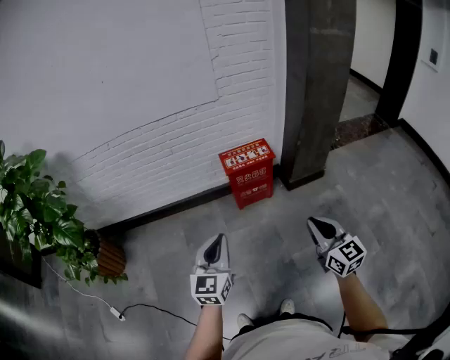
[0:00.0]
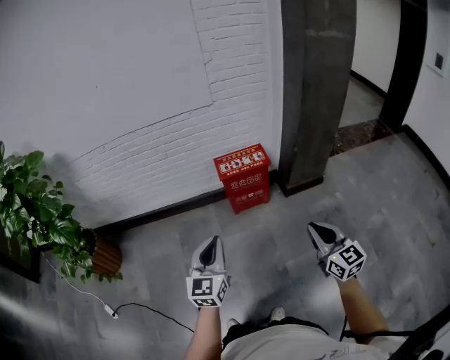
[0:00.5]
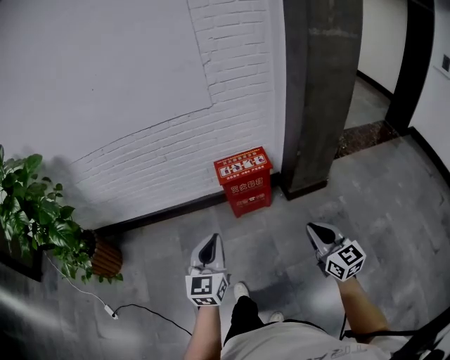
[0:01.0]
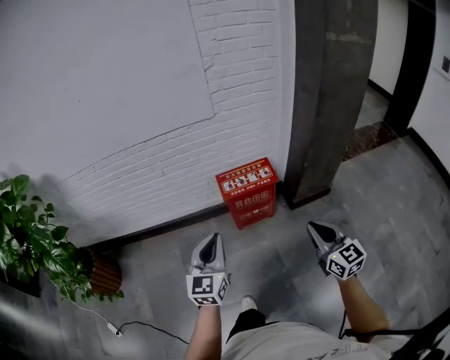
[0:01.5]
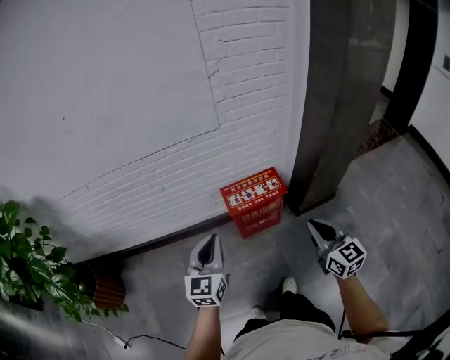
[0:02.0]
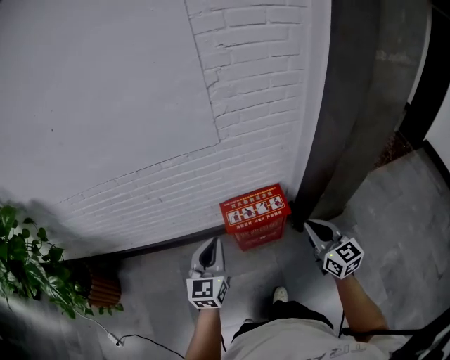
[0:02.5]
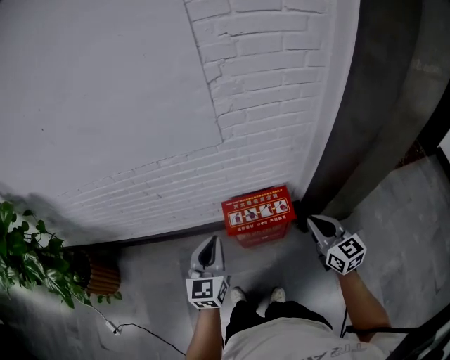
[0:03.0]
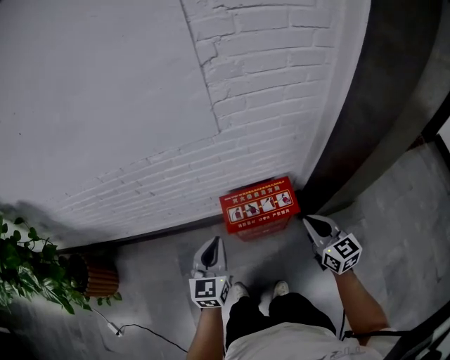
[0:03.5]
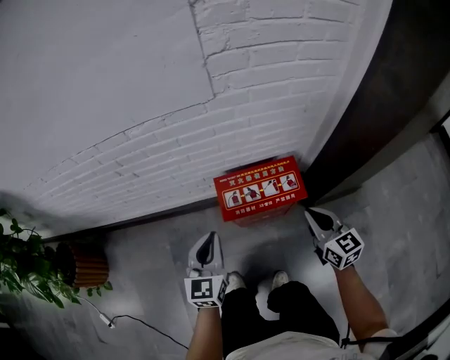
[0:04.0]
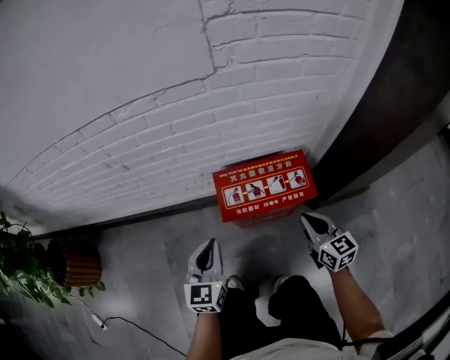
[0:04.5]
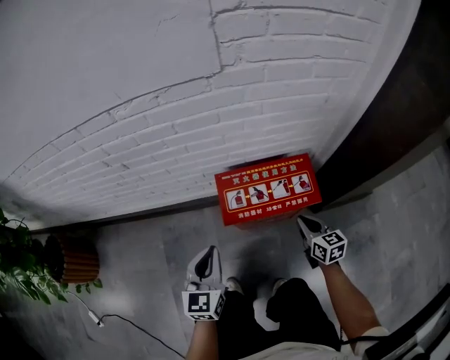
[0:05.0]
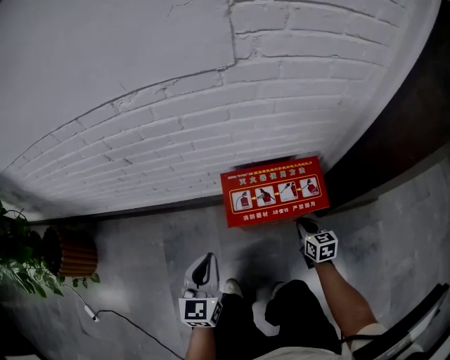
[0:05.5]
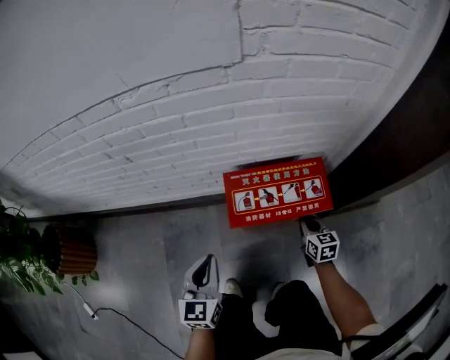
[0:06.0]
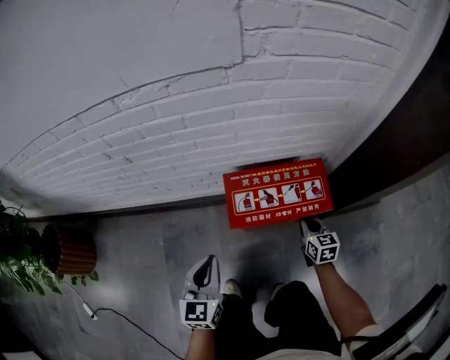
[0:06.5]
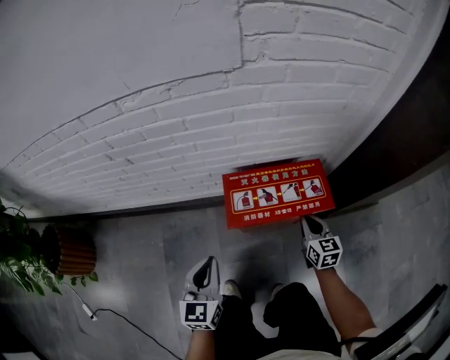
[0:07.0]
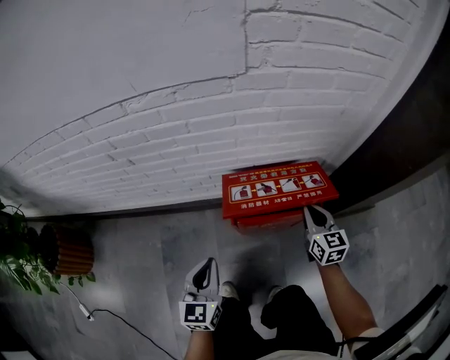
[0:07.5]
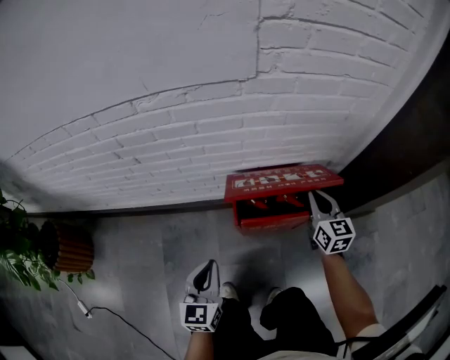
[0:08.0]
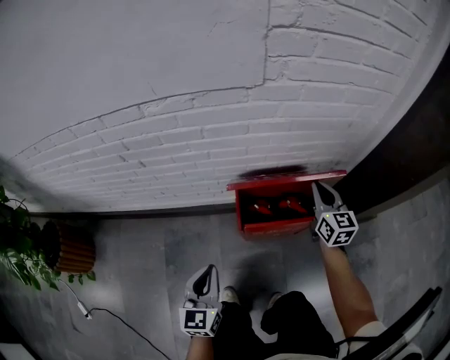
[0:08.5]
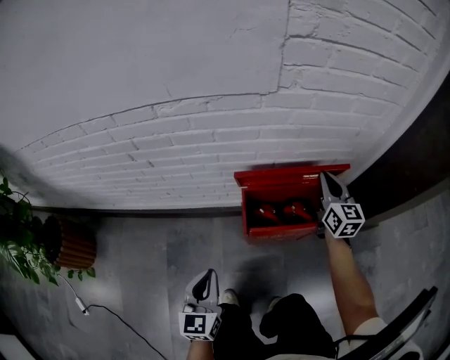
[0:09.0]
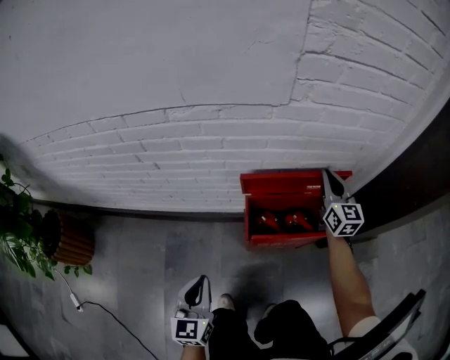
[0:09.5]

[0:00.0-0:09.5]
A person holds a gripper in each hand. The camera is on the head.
0:00.0 to 0:02.0: The grippers both shift forward by some 30 cm.
0:02.0 to 0:04.0: The right gripper goes roughly 35 cm forward and downward; the left gripper goes roughly 30 cm downward and forward.
0:04.0 to 0:05.5: The right gripper is displaced downward by roughly 30 cm, and changes its angle by some 20 degrees, while the left gripper heads downward, covering about 15 cm.
0:05.5 to 0:07.5: The right gripper shifts approximately 15 cm upward.
0:07.5 to 0:09.5: The left gripper moves to the left, approximately 5 cm. The right gripper shifts approximately 20 cm forward and upward.

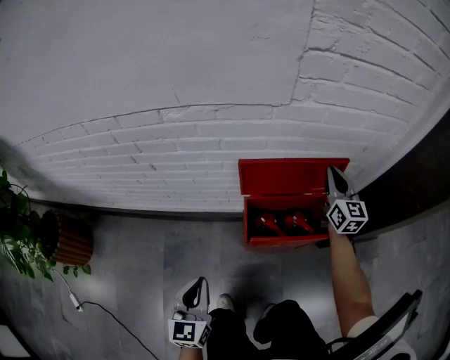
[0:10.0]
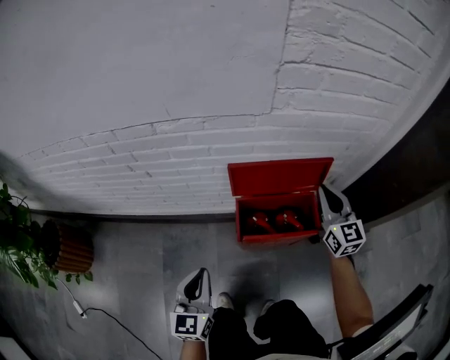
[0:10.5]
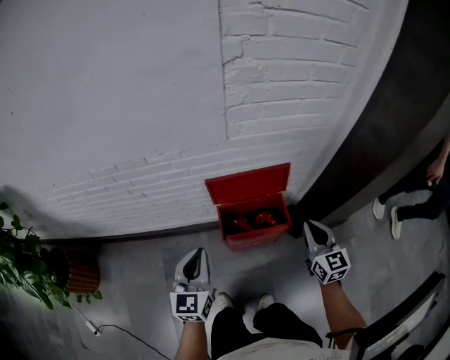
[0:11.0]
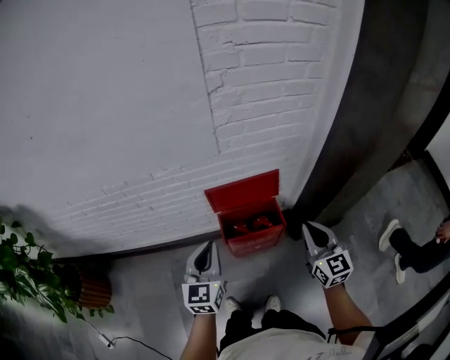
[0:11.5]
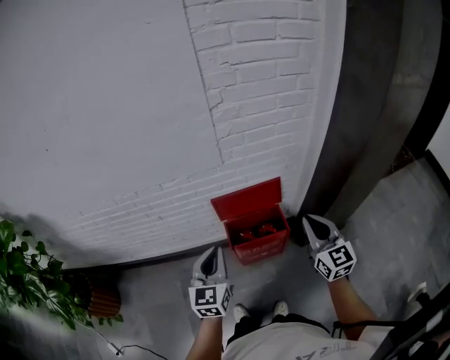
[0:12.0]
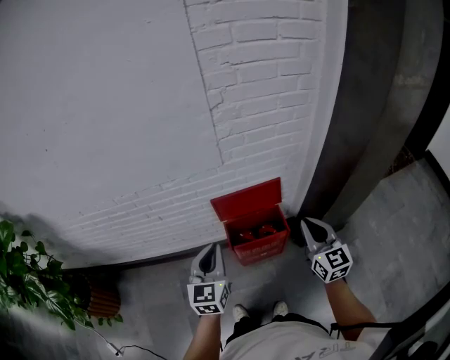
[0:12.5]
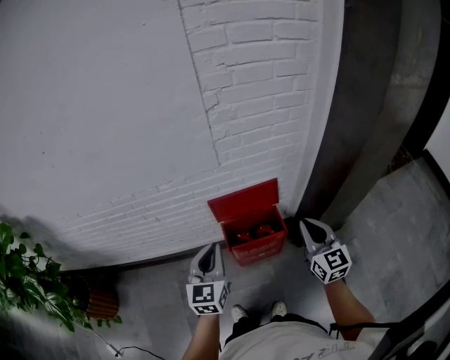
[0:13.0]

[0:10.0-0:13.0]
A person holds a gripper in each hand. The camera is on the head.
0:10.0 to 0:11.5: The left gripper moves upward, about 25 cm, while the right gripper is displaced backward and upward by roughly 35 cm.
0:11.5 to 0:13.0: The grippers stay close to where they were, moving slightly.

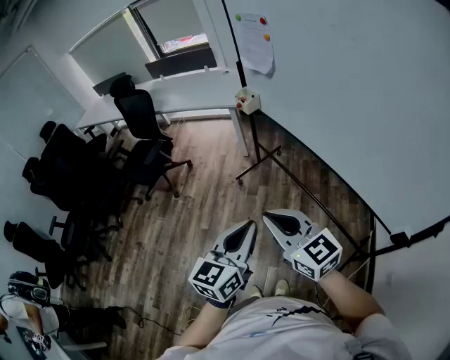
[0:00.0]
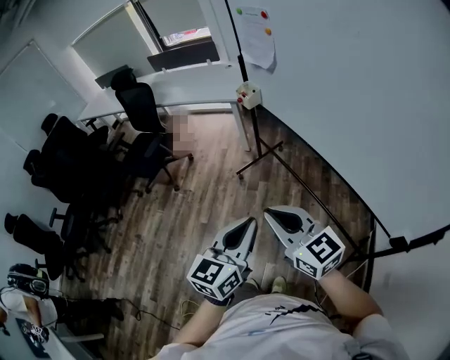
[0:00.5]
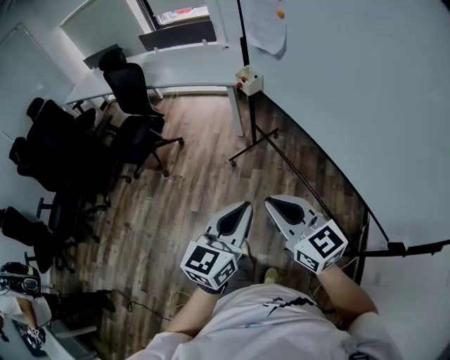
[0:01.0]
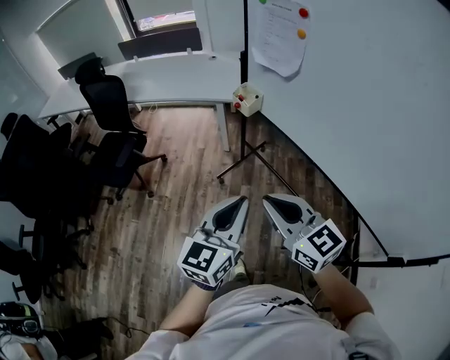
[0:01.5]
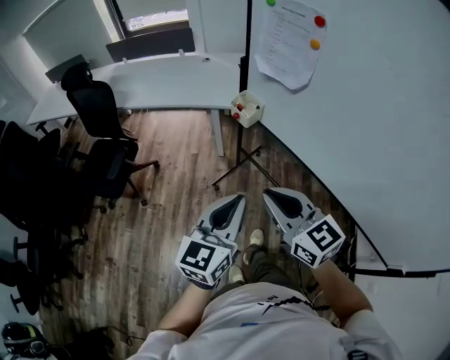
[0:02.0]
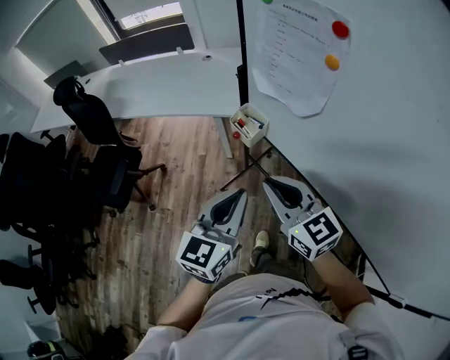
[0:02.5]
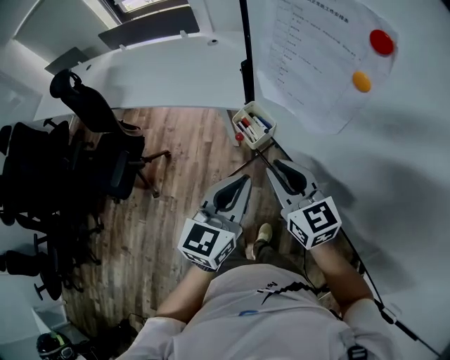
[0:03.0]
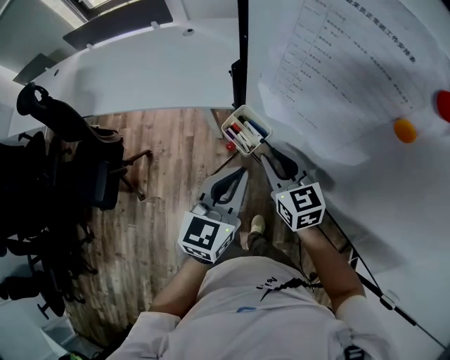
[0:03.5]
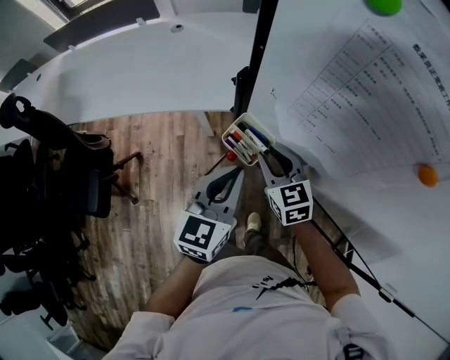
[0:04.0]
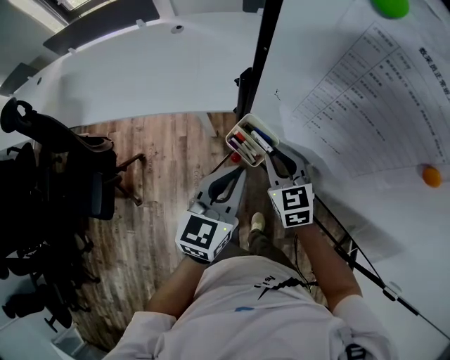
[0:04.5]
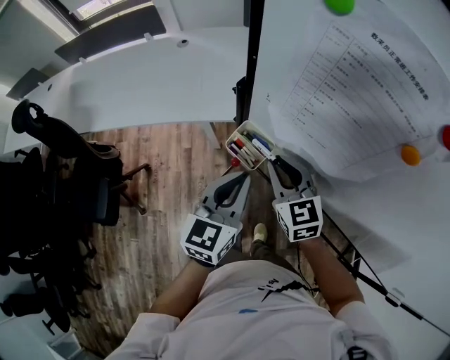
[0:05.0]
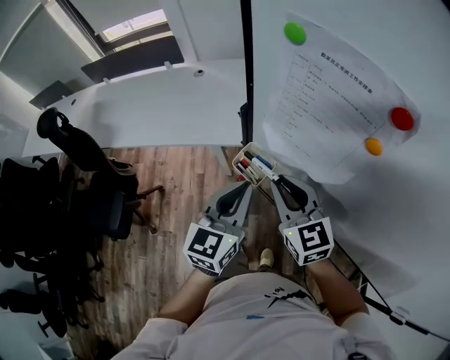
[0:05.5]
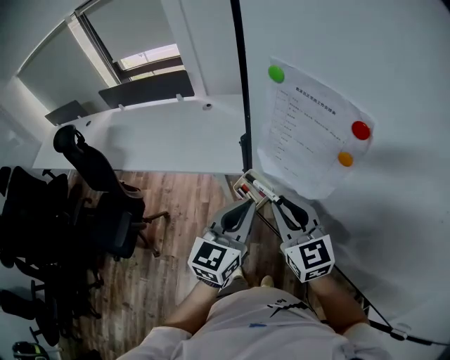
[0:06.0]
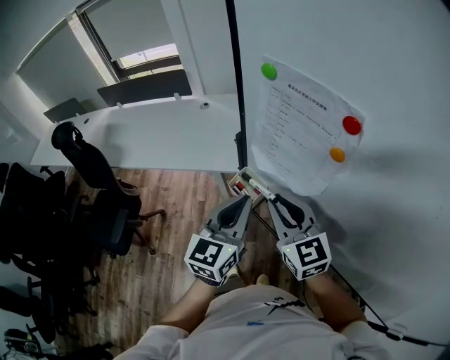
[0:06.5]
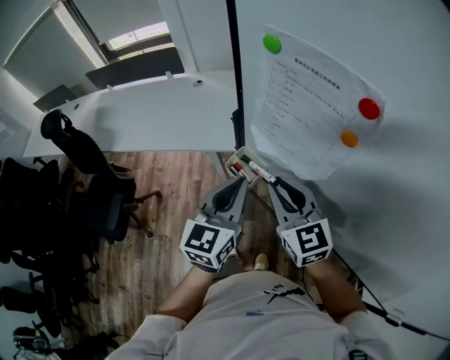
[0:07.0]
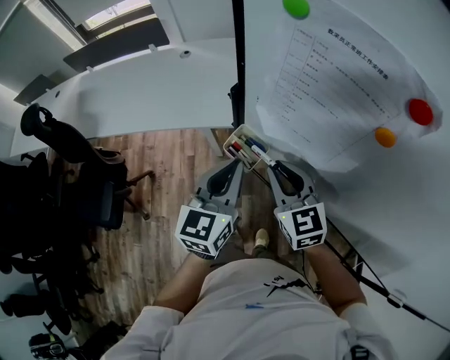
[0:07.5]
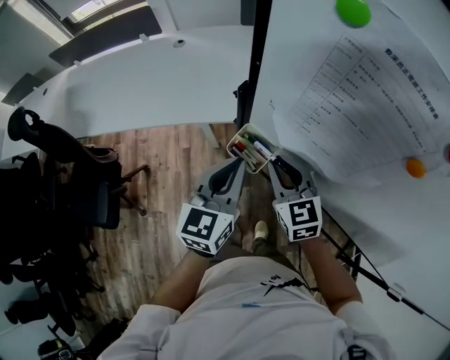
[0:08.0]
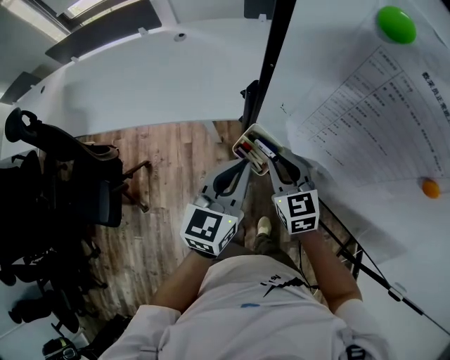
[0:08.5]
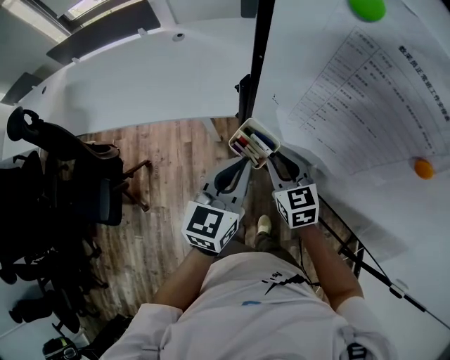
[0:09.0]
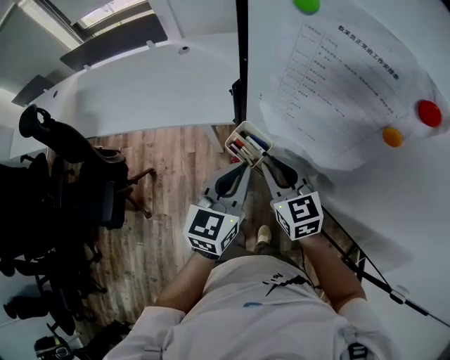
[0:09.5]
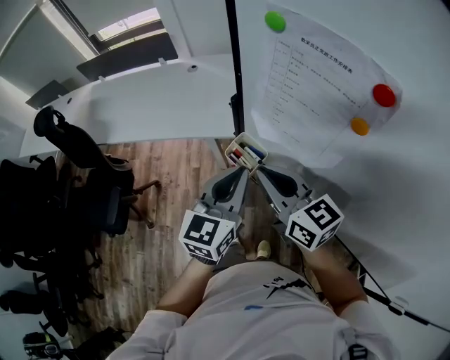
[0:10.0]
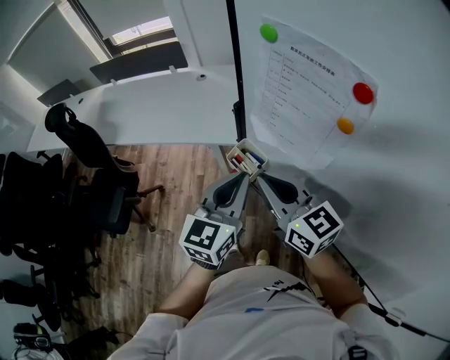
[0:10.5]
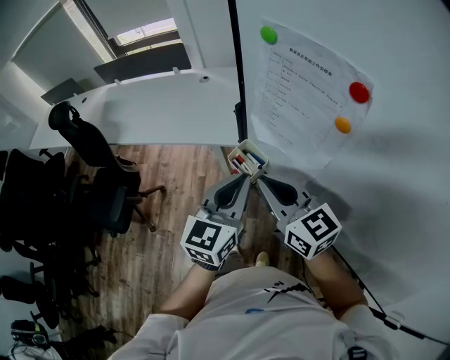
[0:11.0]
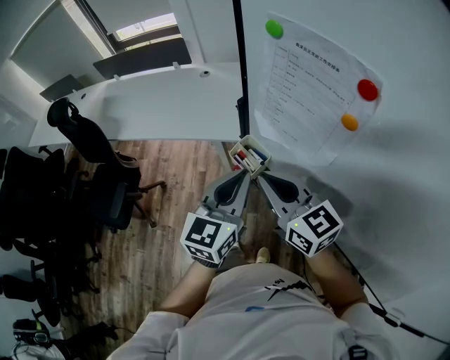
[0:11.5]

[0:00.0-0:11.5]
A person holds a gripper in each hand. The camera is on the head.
0:00.0 to 0:02.0: The two grippers go roughly 30 cm forward.
0:02.0 to 0:04.0: The two grippers travel together, forward, some 40 cm. The right gripper is displaced downward by about 20 cm, swivels about 30 degrees, and opens up.
0:04.0 to 0:06.0: The left gripper shifts about 10 cm upward, while the right gripper shifts approximately 20 cm upward, and swivels approximately 20 degrees.
0:06.0 to 0:07.5: The left gripper goes some 5 cm downward, while the right gripper shifts some 10 cm downward.
0:07.5 to 0:09.5: The right gripper moves approximately 10 cm downward and comes back.
0:09.5 to 0:11.5: The left gripper moves upward, approximately 10 cm. The right gripper heads upward and backward, covering roughly 15 cm, and rotates approximately 20 degrees.

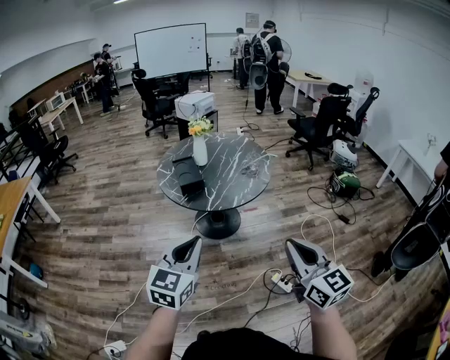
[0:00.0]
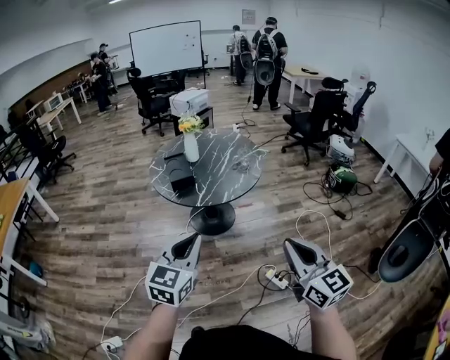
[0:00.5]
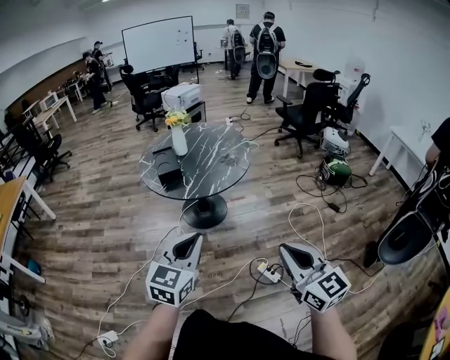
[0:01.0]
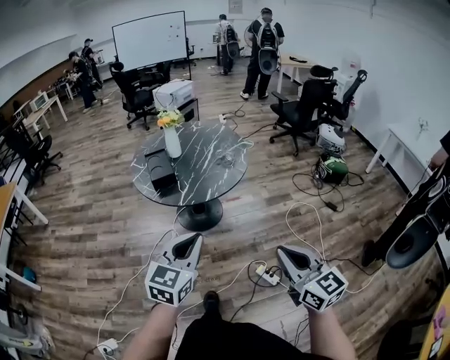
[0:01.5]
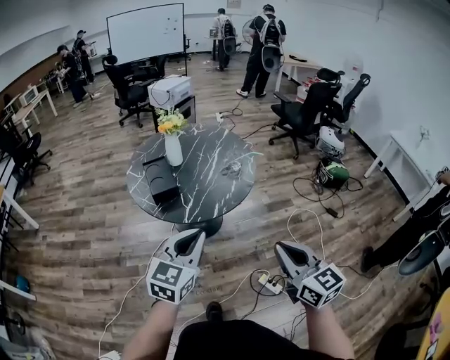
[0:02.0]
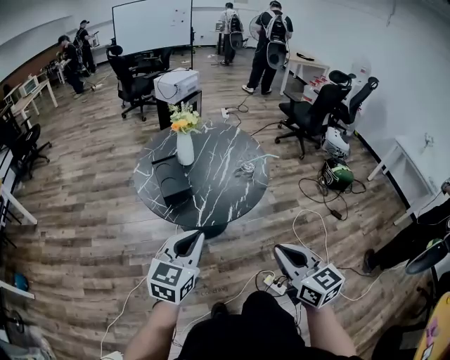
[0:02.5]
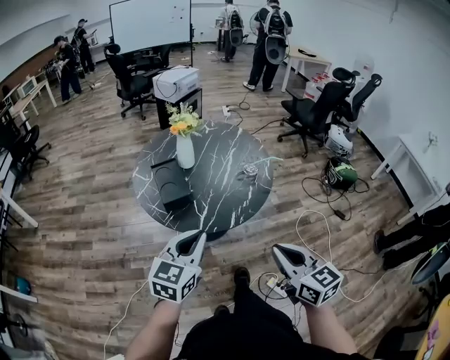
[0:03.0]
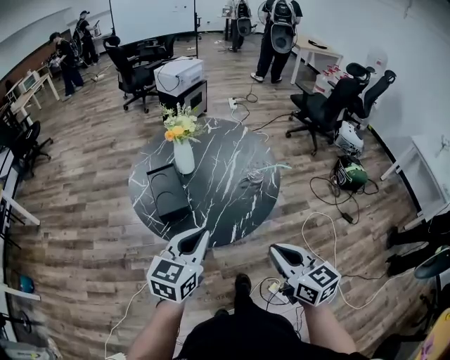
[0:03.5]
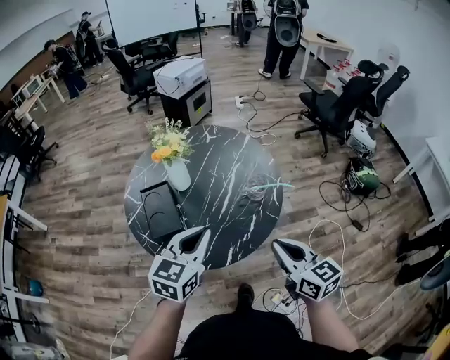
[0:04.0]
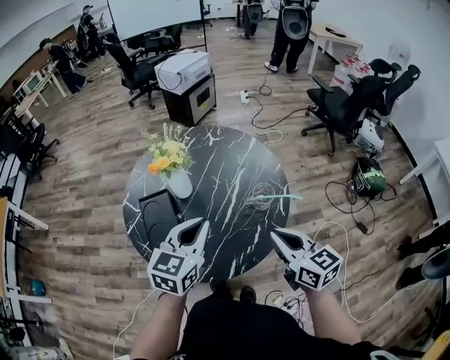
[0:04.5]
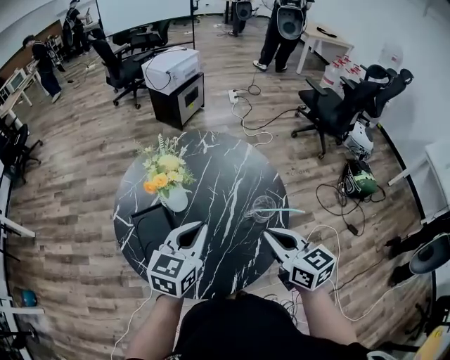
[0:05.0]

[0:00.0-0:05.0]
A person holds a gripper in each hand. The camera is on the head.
0:00.0 to 0:02.5: Both grippers move forward, roughly 20 cm.
0:02.5 to 0:05.0: The pair of grippers is taken forward, some 40 cm.
